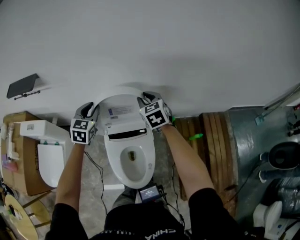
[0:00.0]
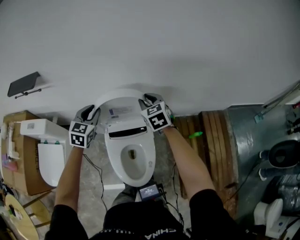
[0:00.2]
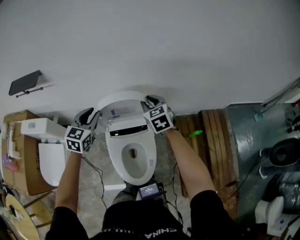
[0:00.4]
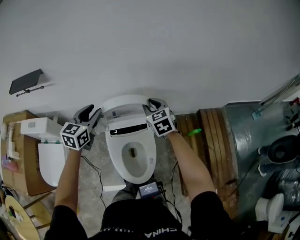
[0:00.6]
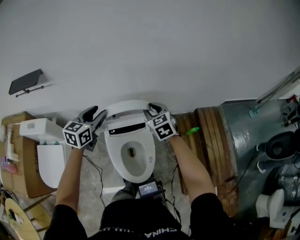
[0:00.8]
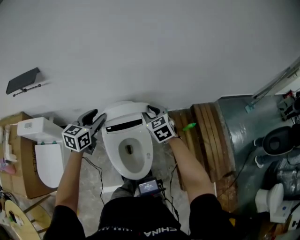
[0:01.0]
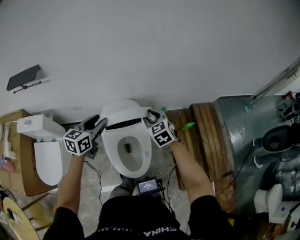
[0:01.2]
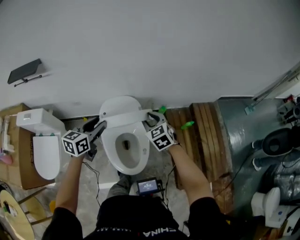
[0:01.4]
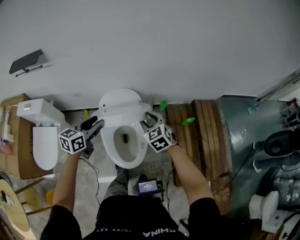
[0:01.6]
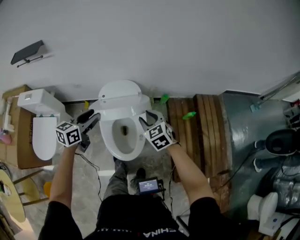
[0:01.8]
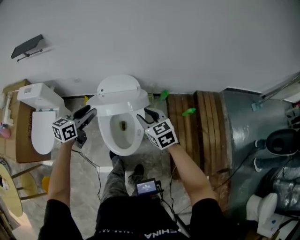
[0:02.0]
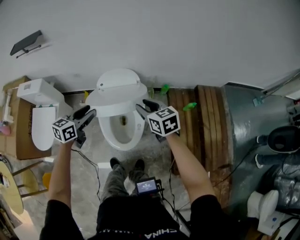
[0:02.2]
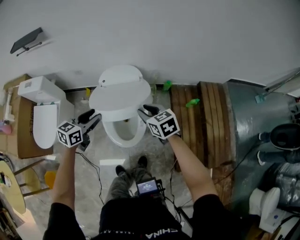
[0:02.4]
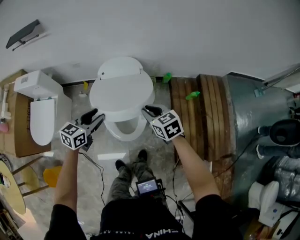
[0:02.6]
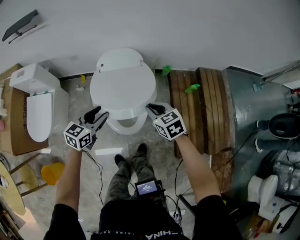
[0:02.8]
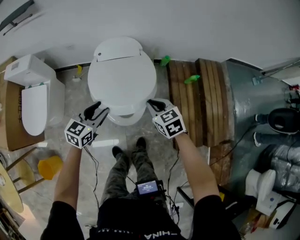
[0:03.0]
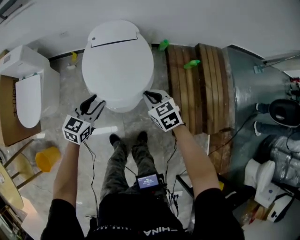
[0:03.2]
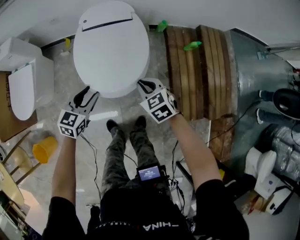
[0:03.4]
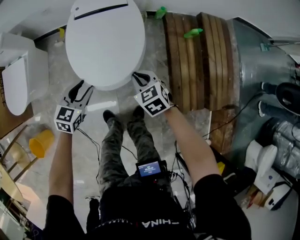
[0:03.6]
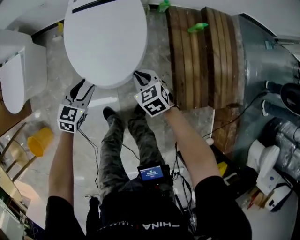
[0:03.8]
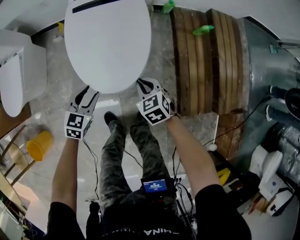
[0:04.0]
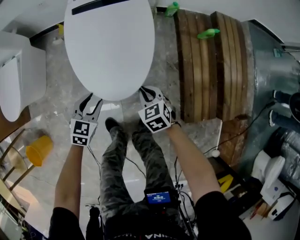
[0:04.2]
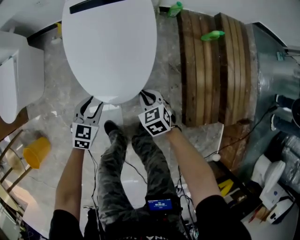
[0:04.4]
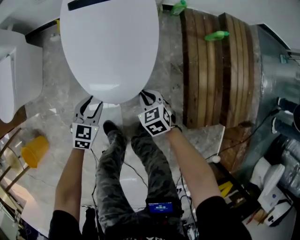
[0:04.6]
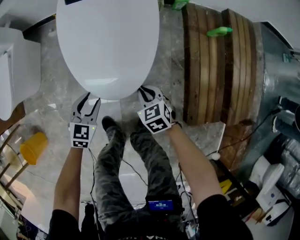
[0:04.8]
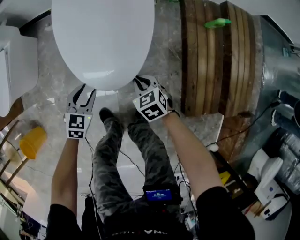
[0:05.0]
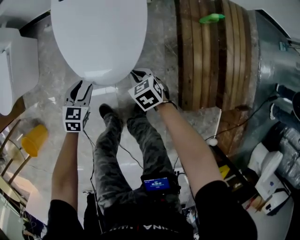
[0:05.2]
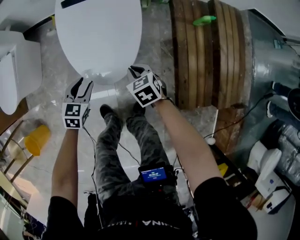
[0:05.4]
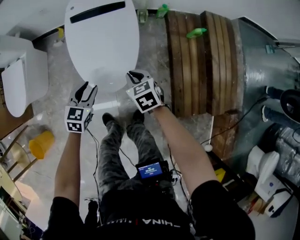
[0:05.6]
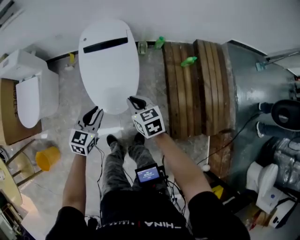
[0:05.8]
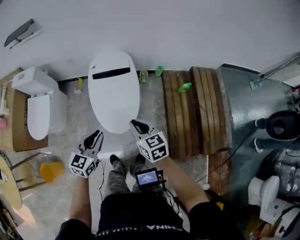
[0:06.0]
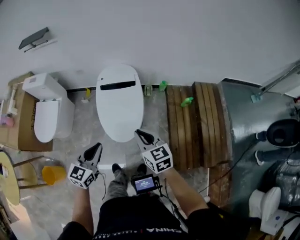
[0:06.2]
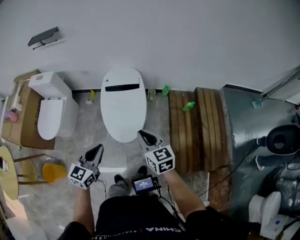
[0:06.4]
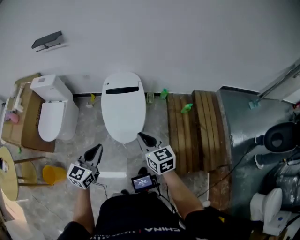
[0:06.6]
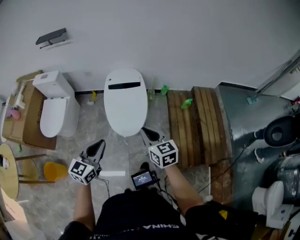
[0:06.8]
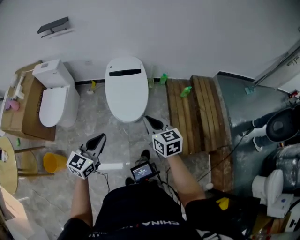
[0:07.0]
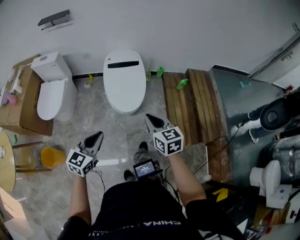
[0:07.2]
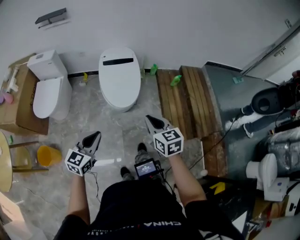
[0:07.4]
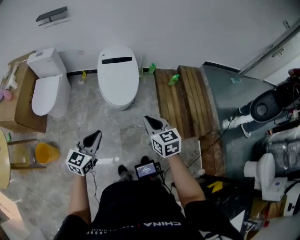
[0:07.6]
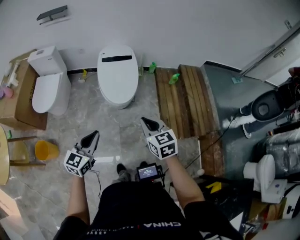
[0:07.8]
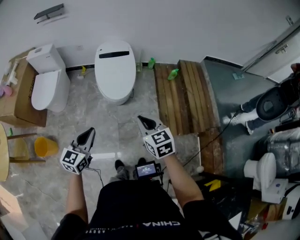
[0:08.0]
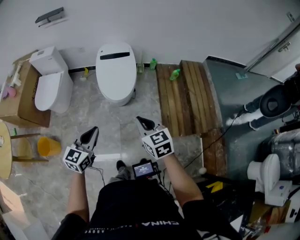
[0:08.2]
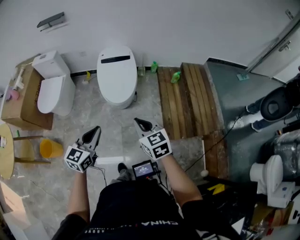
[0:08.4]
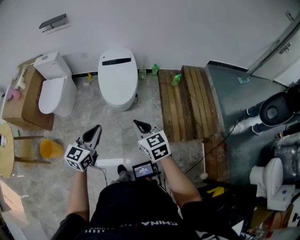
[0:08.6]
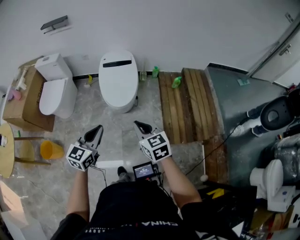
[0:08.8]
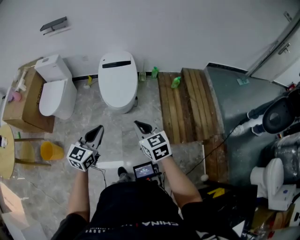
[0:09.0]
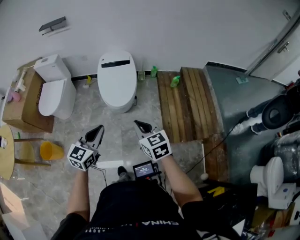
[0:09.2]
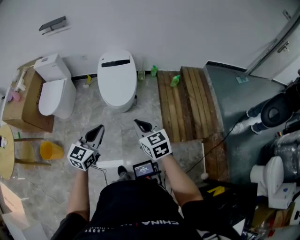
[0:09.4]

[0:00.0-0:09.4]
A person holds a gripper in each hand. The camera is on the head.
0:00.0 to 0:01.6: Both grippers move backward, some 25 cm. The left gripper turns by approximately 40 degrees.
0:01.6 to 0:03.2: Both grippers move backward and downward, about 25 cm. The right gripper closes its fingers.
0:03.2 to 0:04.8: Both grippers travel together downward, approximately 35 cm. The left gripper changes its angle by approximately 20 degrees.
0:04.8 to 0:06.2: The two grippers go some 50 cm upward. The left gripper turns by about 20 degrees, and closes its fingers; the right gripper changes its angle by about 30 degrees.
0:06.2 to 0:07.8: Both grippers move backward, approximately 30 cm.
0:07.8 to 0:09.4: The left gripper travels to the right by about 10 cm; the right gripper ends up approximately 5 cm from where it was.

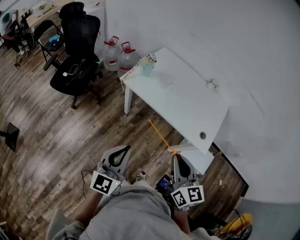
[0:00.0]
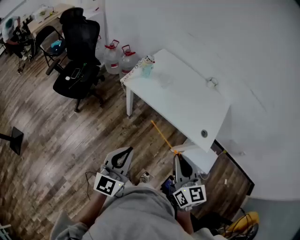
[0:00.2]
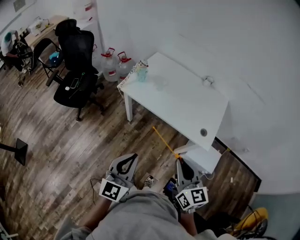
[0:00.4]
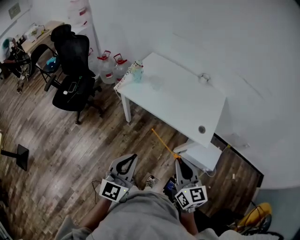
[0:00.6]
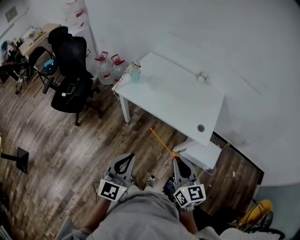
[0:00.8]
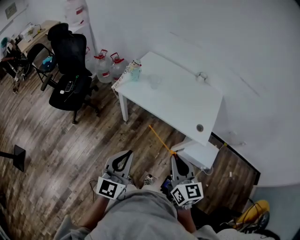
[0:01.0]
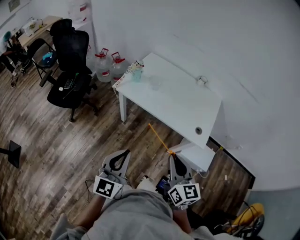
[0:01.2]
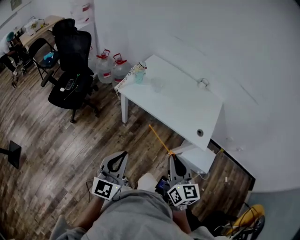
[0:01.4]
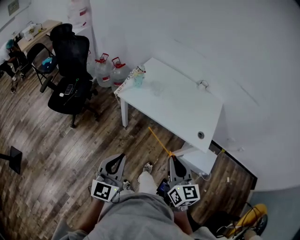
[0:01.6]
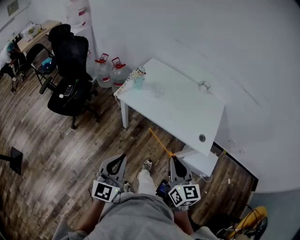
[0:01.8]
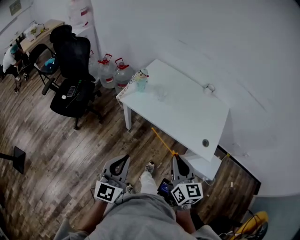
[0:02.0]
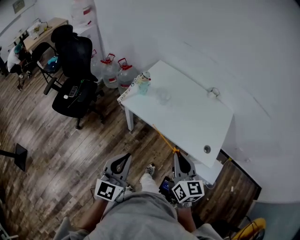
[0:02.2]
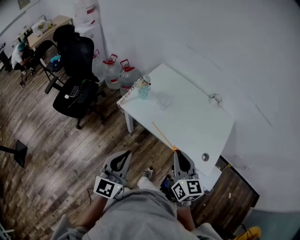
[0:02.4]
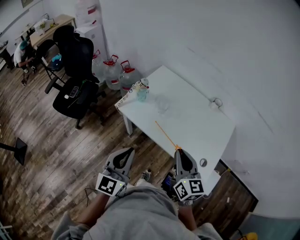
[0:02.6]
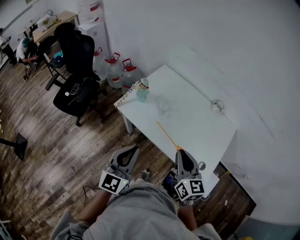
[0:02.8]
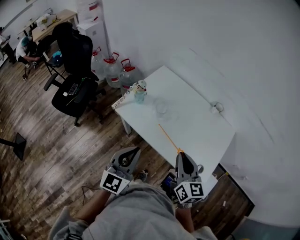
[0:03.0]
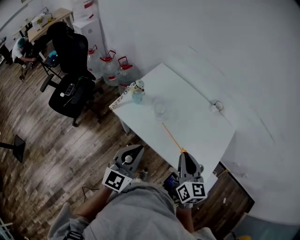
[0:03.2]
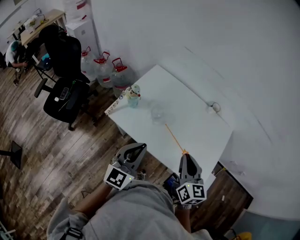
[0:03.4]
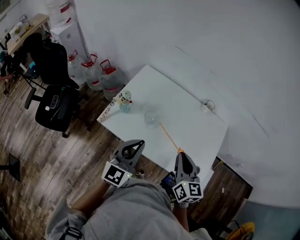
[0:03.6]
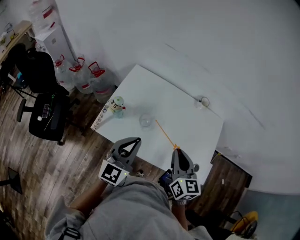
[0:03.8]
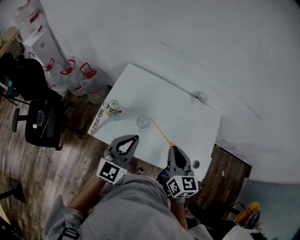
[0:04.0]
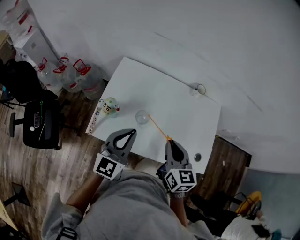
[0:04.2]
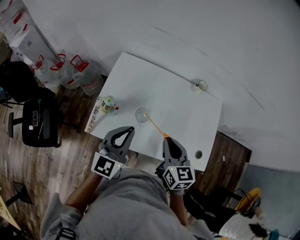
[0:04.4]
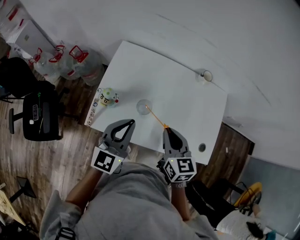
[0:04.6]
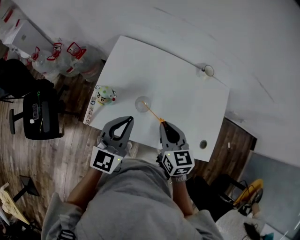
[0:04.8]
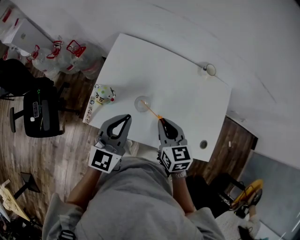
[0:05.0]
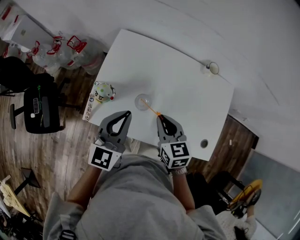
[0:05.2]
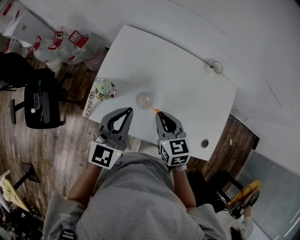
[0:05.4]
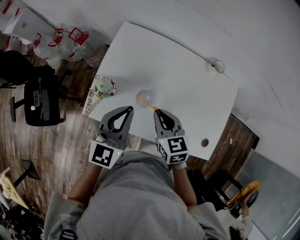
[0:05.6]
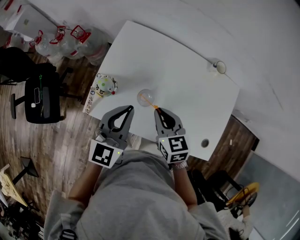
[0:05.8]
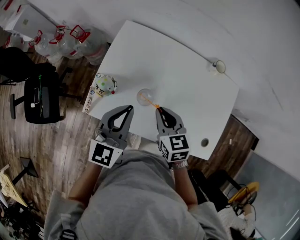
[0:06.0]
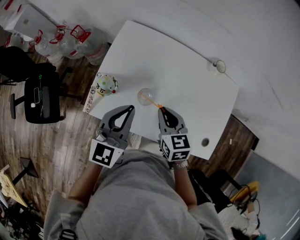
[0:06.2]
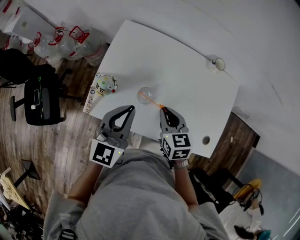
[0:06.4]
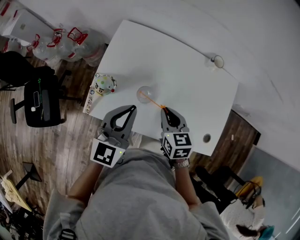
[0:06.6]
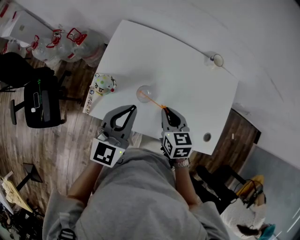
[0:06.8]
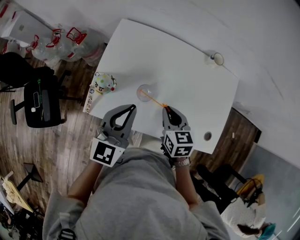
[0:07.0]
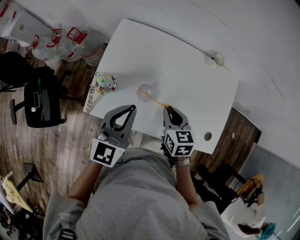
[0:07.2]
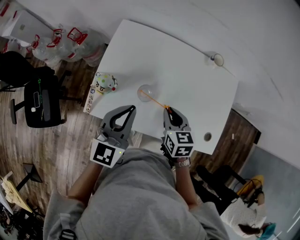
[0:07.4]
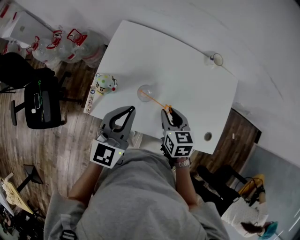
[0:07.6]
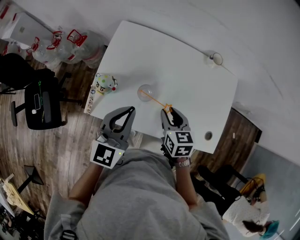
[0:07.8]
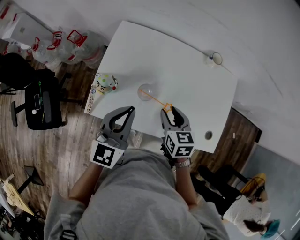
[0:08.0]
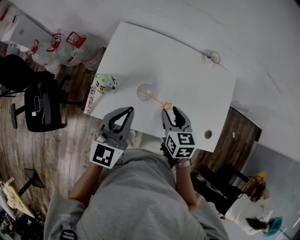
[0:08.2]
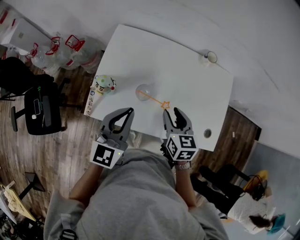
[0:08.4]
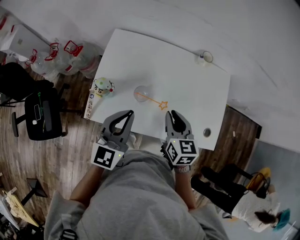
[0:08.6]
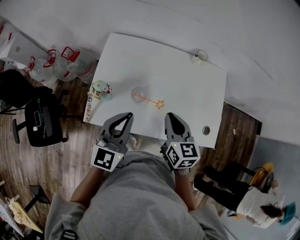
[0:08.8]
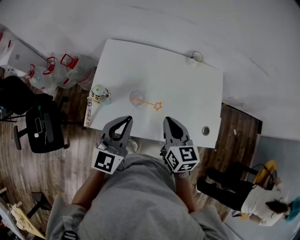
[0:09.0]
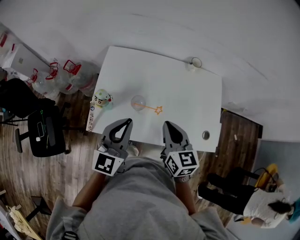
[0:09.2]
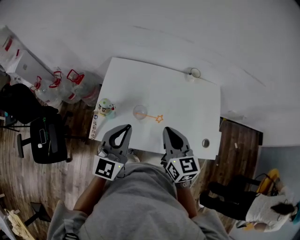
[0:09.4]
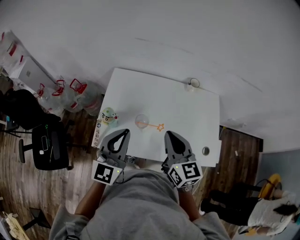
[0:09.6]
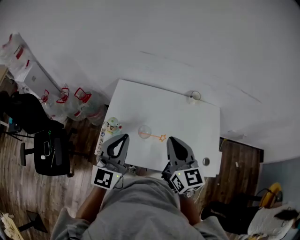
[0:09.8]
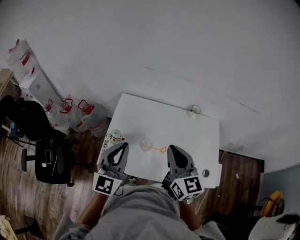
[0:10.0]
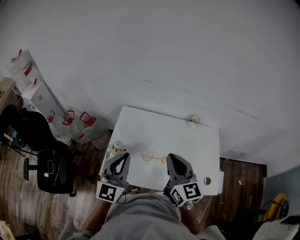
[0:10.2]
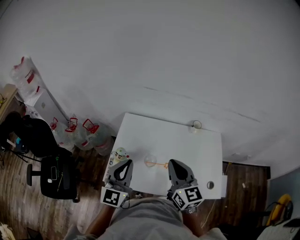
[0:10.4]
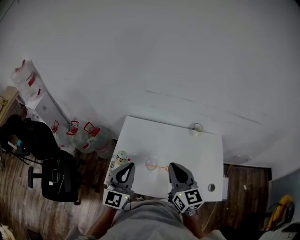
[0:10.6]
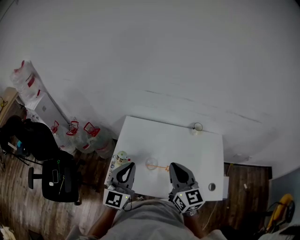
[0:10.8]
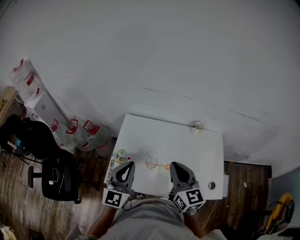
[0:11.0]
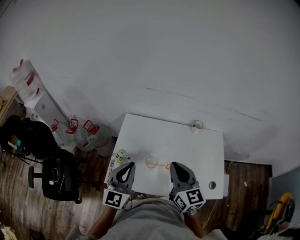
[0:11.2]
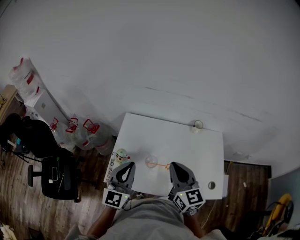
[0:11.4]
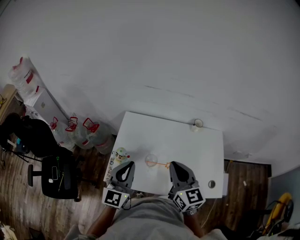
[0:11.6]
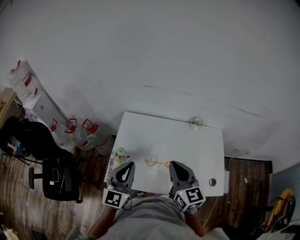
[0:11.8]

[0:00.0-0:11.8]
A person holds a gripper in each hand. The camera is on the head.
0:00.0 to 0:01.4: The left gripper moves some 10 cm to the right and comes back.
0:01.4 to 0:03.0: The two grippers go about 25 cm forward.
0:03.0 to 0:04.4: The left gripper is displaced forward by roughly 25 cm, and changes its angle by roughly 30 degrees. Meanwhile the right gripper moves forward and to the left, some 15 cm, and changes its angle by about 20 degrees.
0:04.4 to 0:06.0: The right gripper moves downward and forward, about 10 cm, while the left gripper shifts by about 5 cm.
0:06.0 to 0:07.4: The right gripper moves some 5 cm.
0:07.4 to 0:08.8: The right gripper travels upward by some 10 cm, and opens and closes again.
0:08.8 to 0:10.4: The left gripper goes some 10 cm upward and to the left, while the right gripper heads upward, covering some 15 cm, and rotates some 20 degrees.
0:10.4 to 0:11.8: The grippers move only a little.

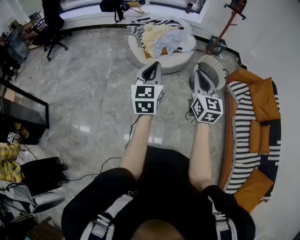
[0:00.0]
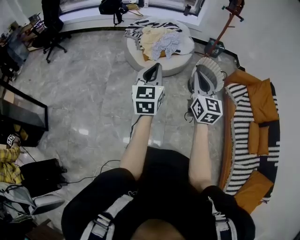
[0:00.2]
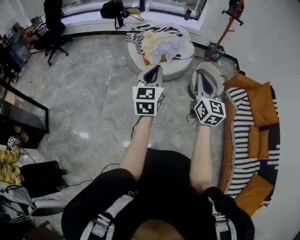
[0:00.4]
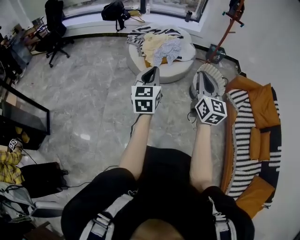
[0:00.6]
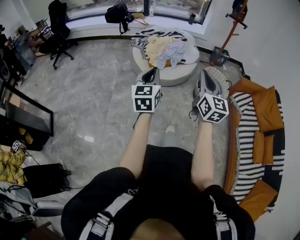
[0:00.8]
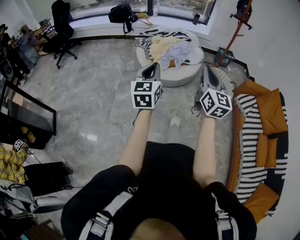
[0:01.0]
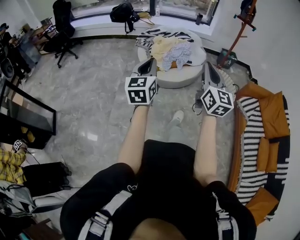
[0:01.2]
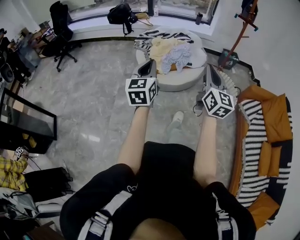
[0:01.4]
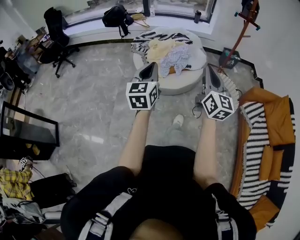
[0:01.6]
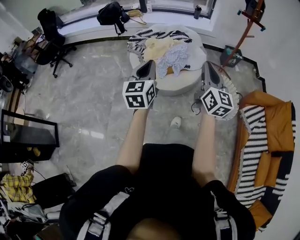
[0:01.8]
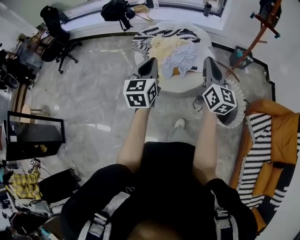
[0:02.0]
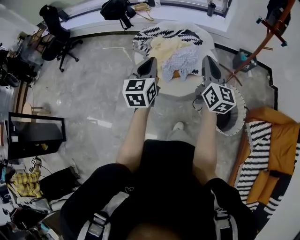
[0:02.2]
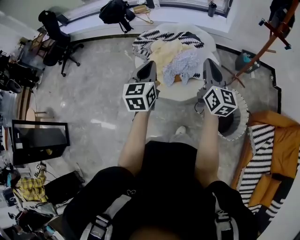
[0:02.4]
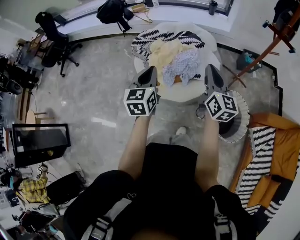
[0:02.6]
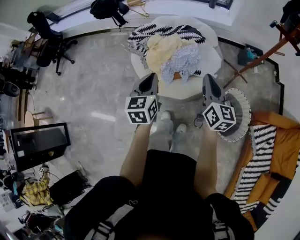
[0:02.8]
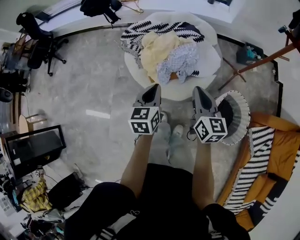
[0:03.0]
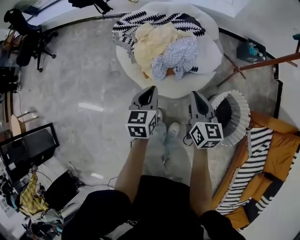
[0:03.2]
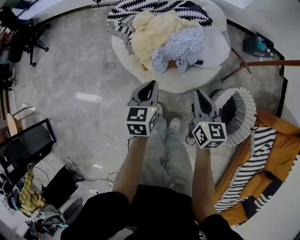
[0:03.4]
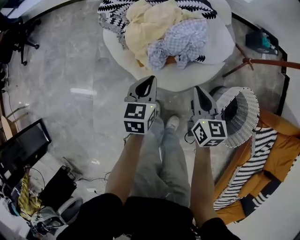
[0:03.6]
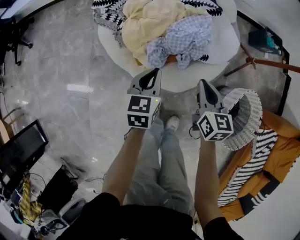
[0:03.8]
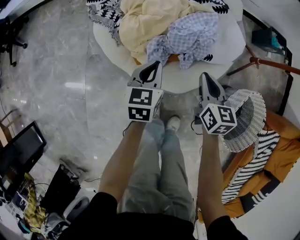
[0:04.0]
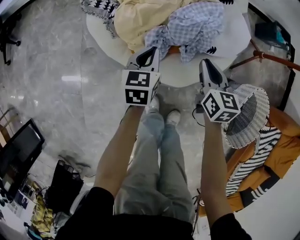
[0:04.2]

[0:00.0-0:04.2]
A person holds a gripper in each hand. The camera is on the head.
0:00.0 to 0:01.4: Both grippers move forward, approximately 20 cm.
0:01.4 to 0:02.8: The pair of grippers is taken forward, approximately 40 cm. The right gripper turns by roughly 20 degrees.
0:02.8 to 0:04.2: The left gripper is displaced downward and forward by approximately 50 cm, while the right gripper moves downward, roughly 40 cm, and swivels roughly 30 degrees.
